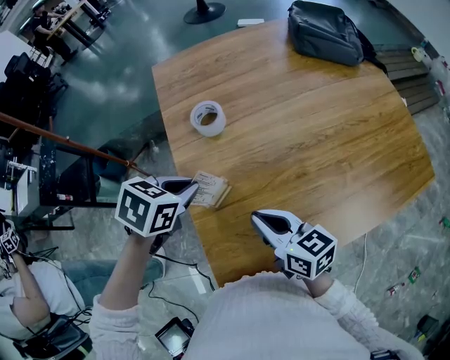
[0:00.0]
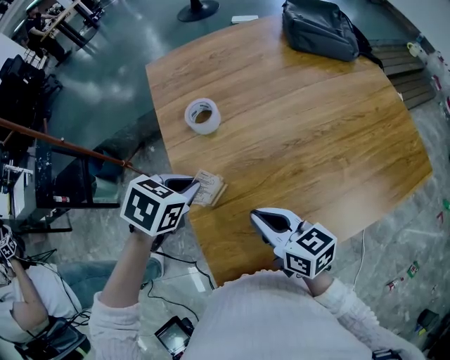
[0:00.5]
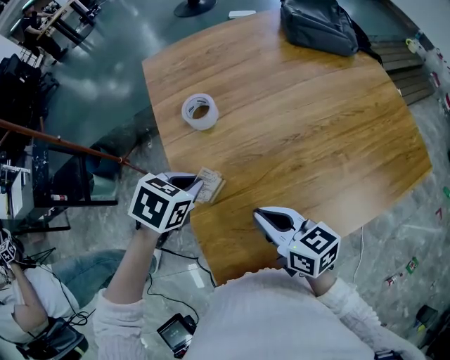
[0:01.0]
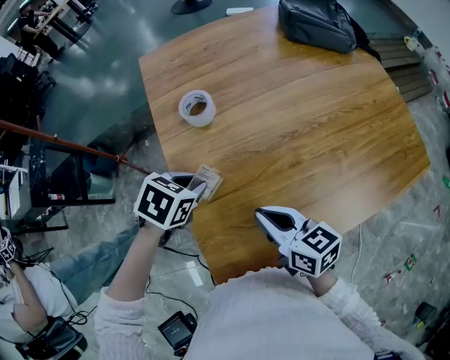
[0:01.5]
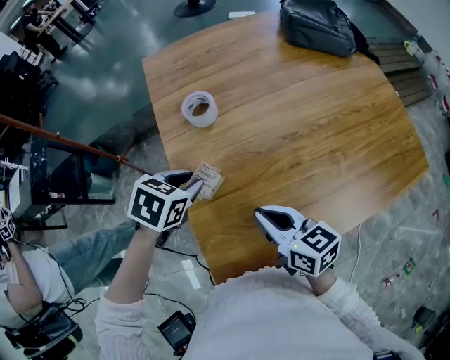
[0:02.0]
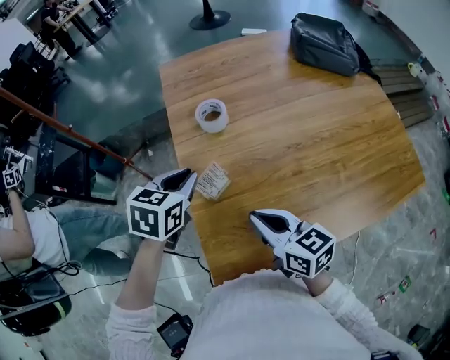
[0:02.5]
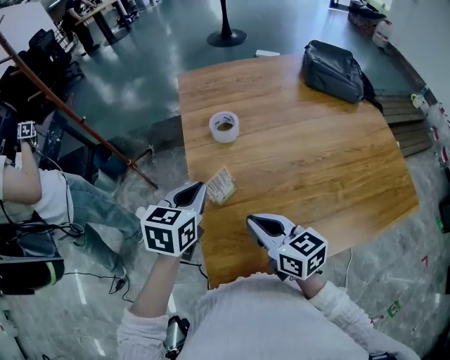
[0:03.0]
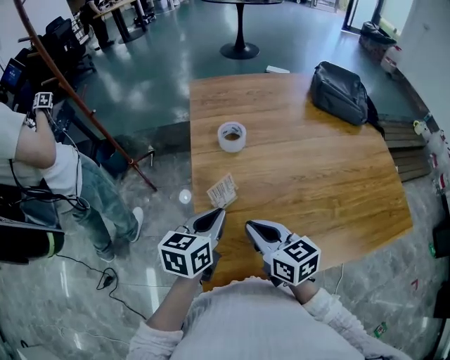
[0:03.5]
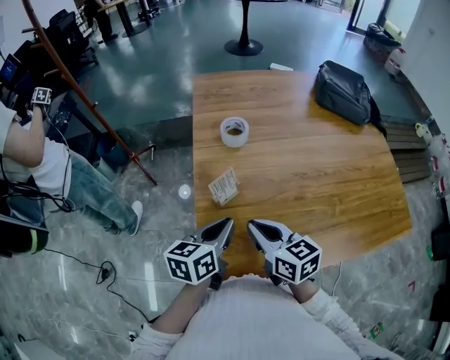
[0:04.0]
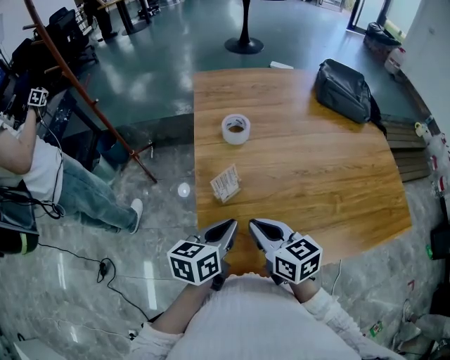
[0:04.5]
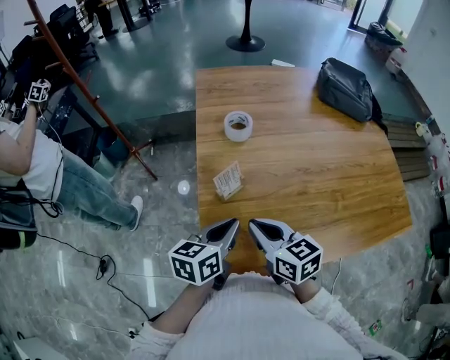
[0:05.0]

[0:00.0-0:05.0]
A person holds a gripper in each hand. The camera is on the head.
0:00.0 to 0:02.5: The left gripper swivels about 20 degrees.
0:02.5 to 0:05.0: The left gripper travels backward by some 15 cm, and swivels roughly 30 degrees.

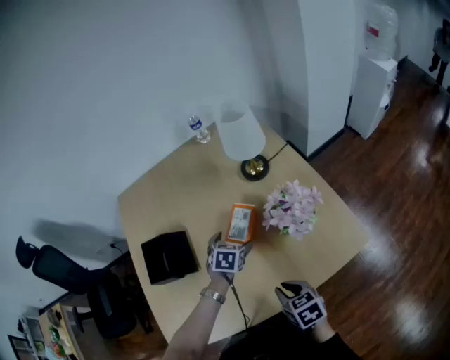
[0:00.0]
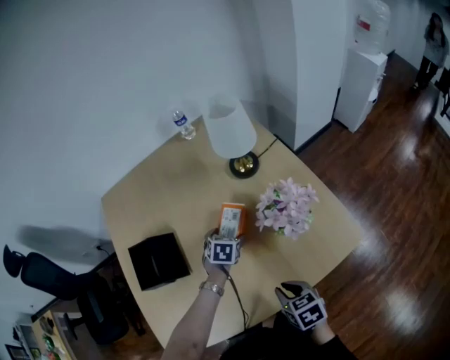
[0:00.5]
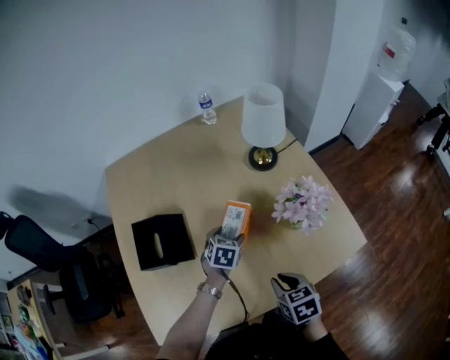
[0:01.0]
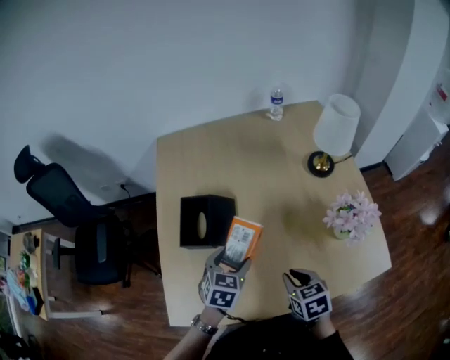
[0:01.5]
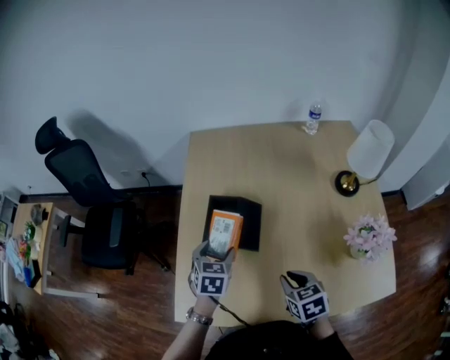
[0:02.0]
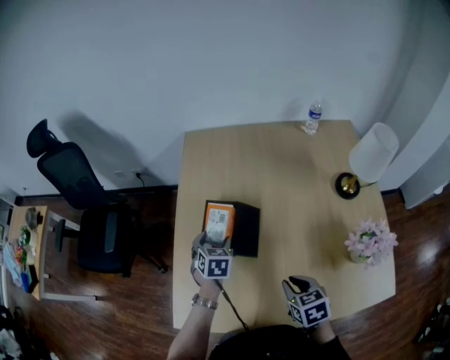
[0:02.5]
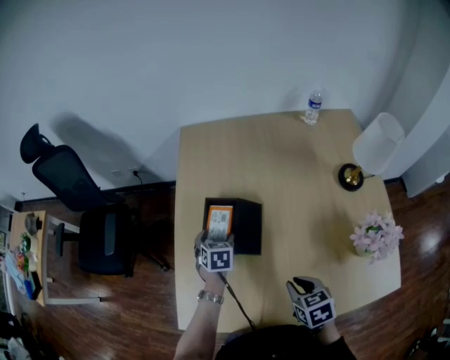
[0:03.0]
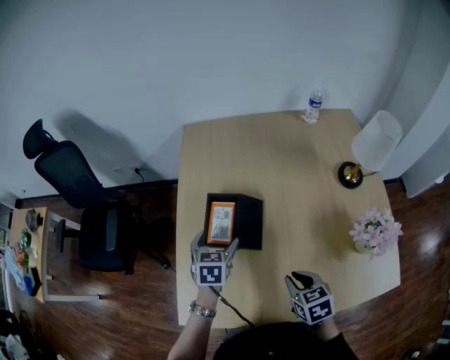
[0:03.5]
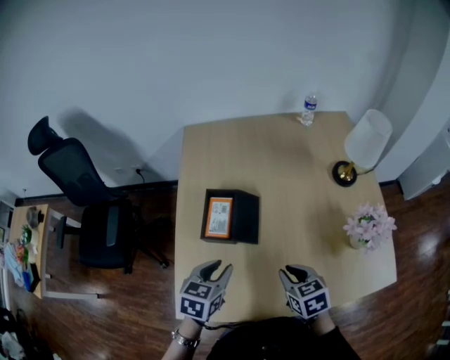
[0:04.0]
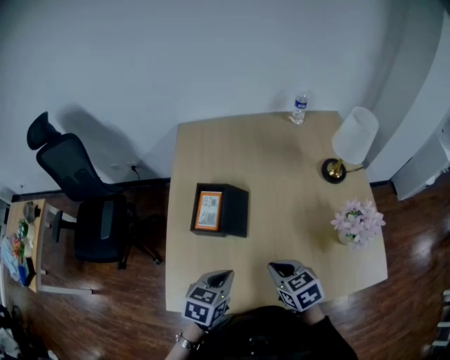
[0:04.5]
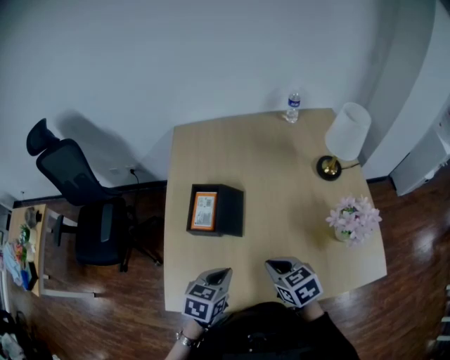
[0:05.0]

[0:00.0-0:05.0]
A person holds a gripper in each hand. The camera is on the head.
0:00.0 to 0:02.5: The right gripper shifts by about 20 cm, and rotates roughly 20 degrees. The left gripper moves up and down over approximately 10 cm, changing direction 2 times, and changes its angle by about 40 degrees.
0:02.5 to 0:05.0: The left gripper travels backward by approximately 20 cm, changes its angle by about 30 degrees, and closes its fingers.

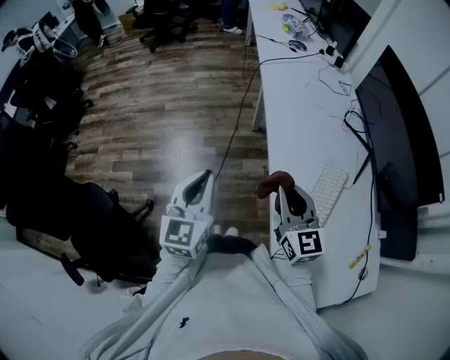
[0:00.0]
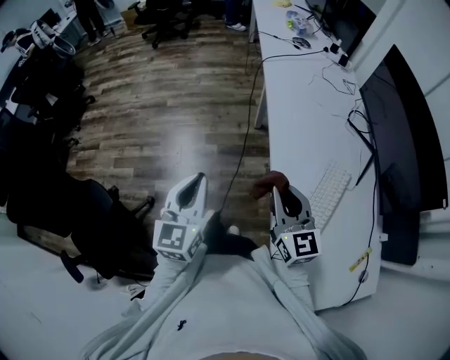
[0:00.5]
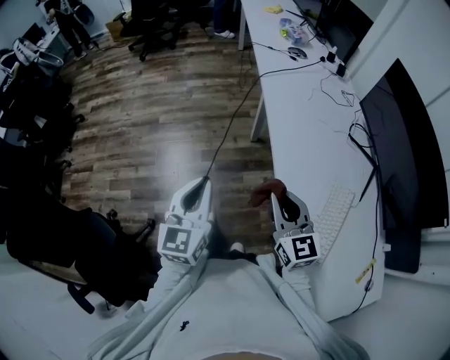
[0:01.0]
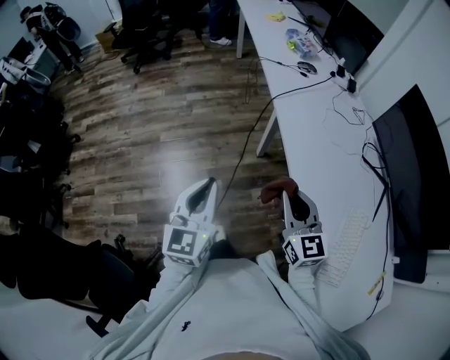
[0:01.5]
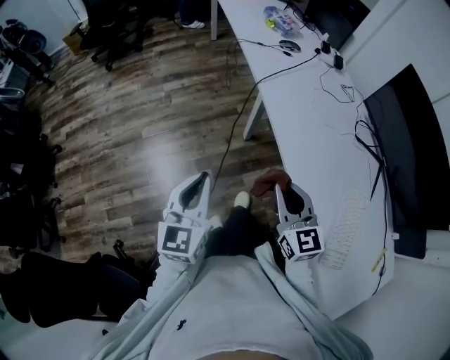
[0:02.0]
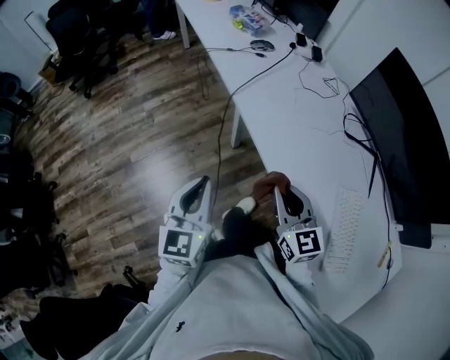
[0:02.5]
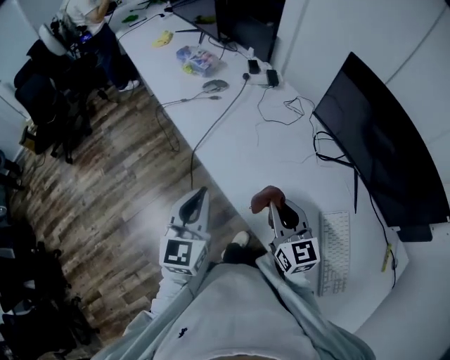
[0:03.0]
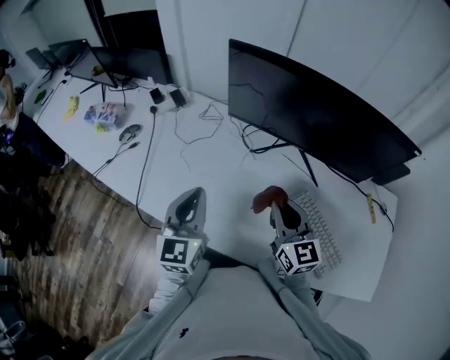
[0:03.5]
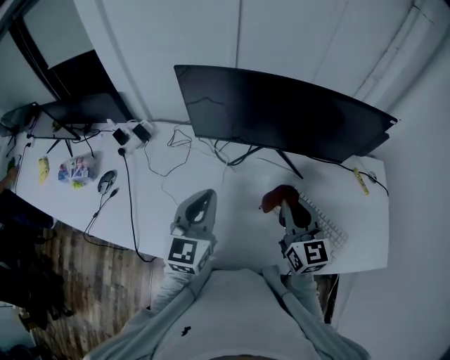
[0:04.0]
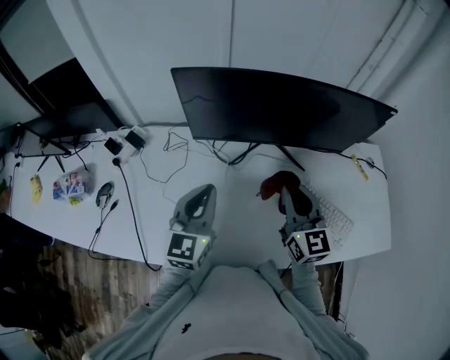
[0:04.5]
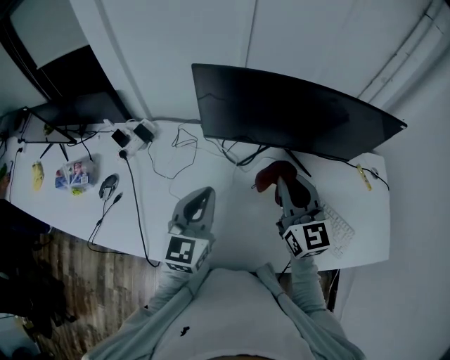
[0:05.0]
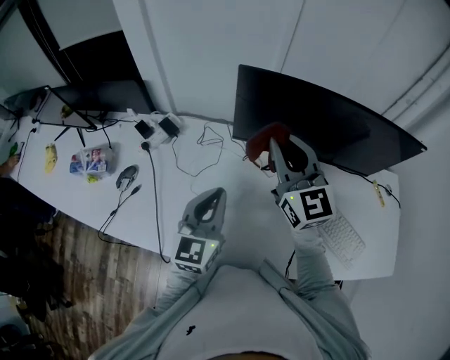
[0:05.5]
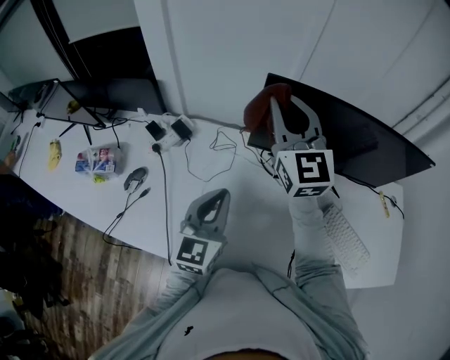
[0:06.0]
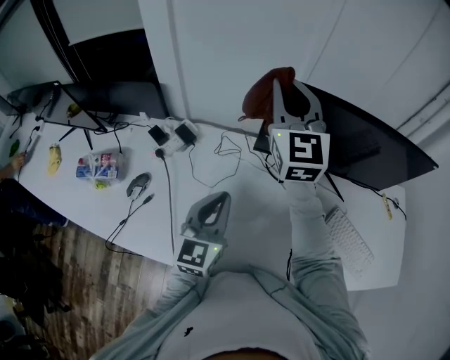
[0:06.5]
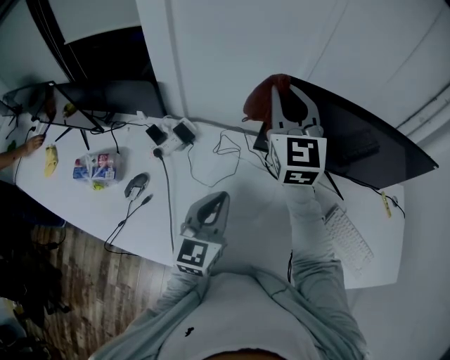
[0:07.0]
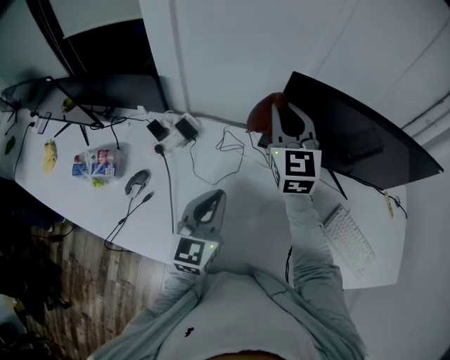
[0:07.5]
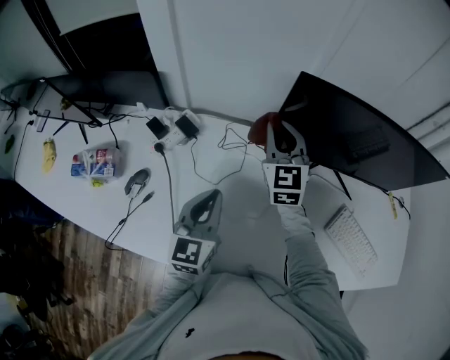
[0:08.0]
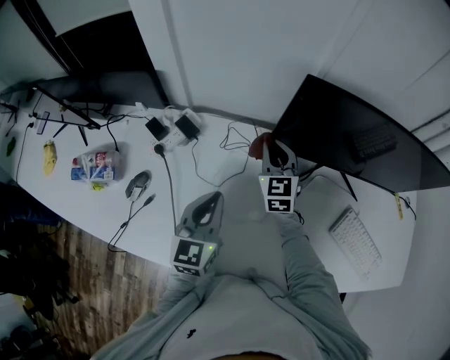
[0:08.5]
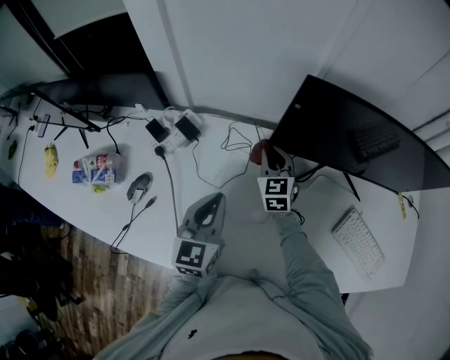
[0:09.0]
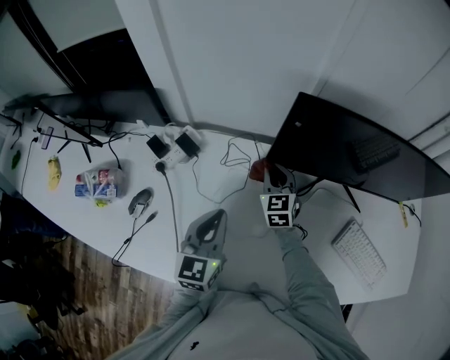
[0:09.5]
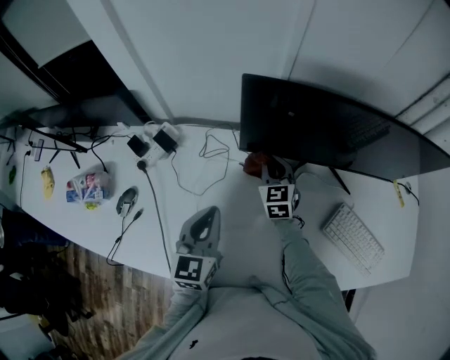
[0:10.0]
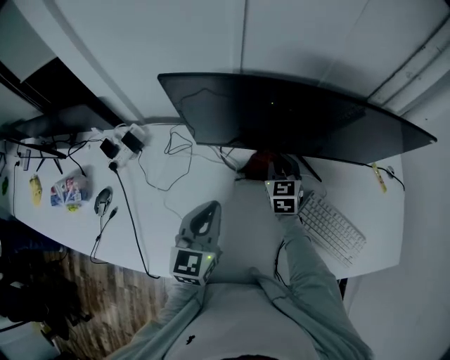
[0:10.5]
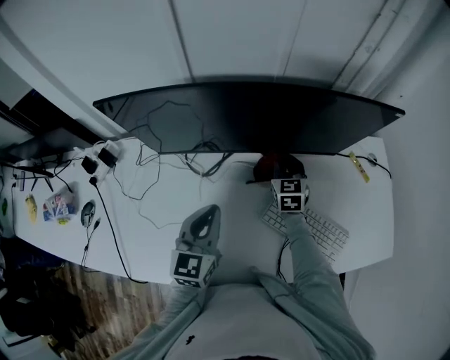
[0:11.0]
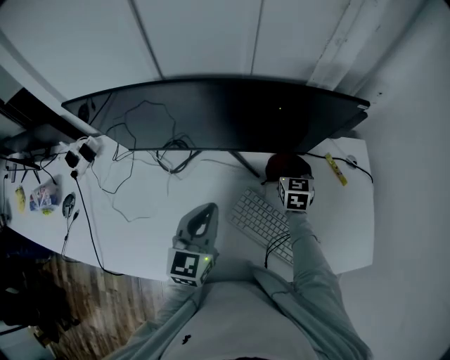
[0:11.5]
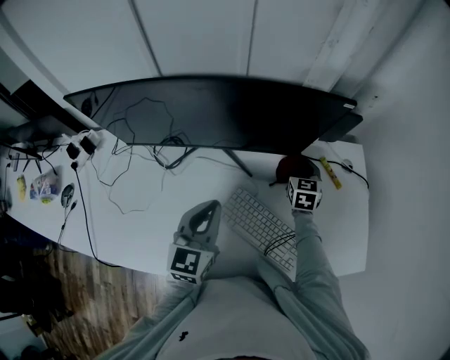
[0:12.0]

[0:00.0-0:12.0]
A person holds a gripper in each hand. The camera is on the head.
0:00.0 to 0:02.0: The two grippers go about 30 cm forward and to the left.
0:02.0 to 0:04.0: The right gripper shifts by about 35 cm, and rotates about 70 degrees. Meanwhile the left gripper changes place by roughly 50 cm, and swivels approximately 70 degrees.
0:04.0 to 0:06.0: The left gripper shifts some 15 cm to the left. Meanwhile the right gripper goes about 40 cm to the left, forward and upward, and turns by some 20 degrees.
0:06.0 to 0:08.0: The right gripper travels downward by about 15 cm. The left gripper is displaced to the left and downward by roughly 10 cm.
0:08.0 to 0:10.0: The right gripper is displaced downward and to the right by about 20 cm. The left gripper heads to the right, covering approximately 5 cm.
0:10.0 to 0:12.0: The two grippers go approximately 50 cm to the right. The right gripper swivels about 20 degrees.

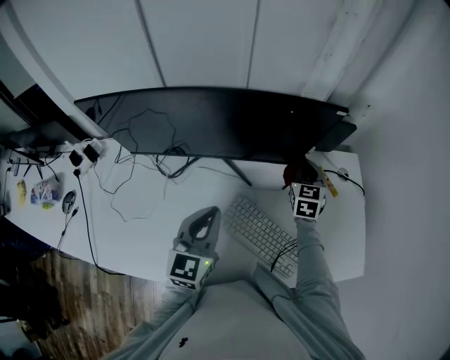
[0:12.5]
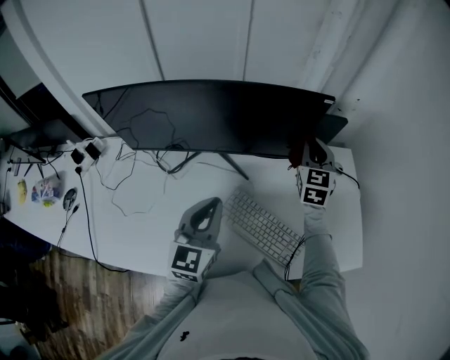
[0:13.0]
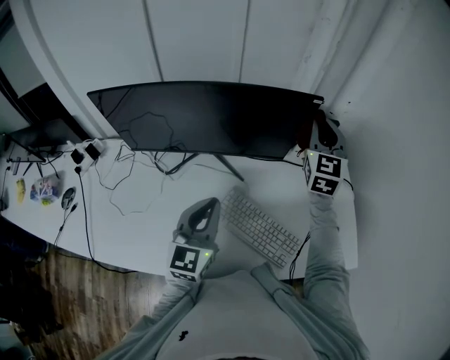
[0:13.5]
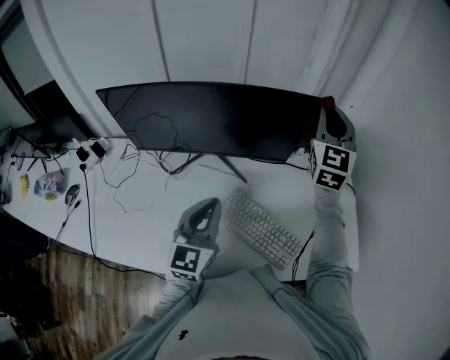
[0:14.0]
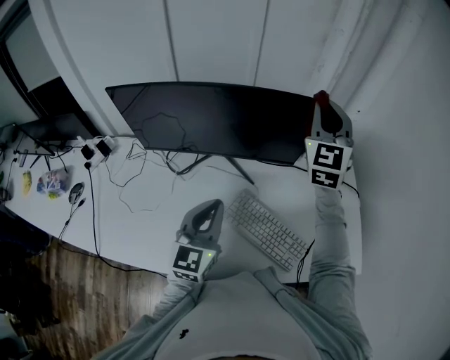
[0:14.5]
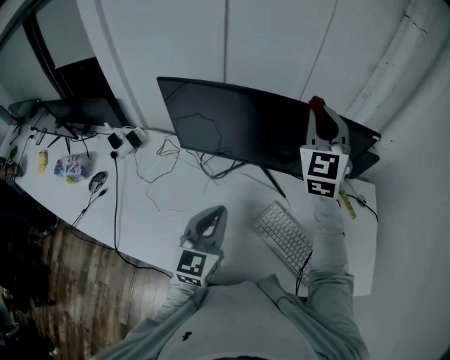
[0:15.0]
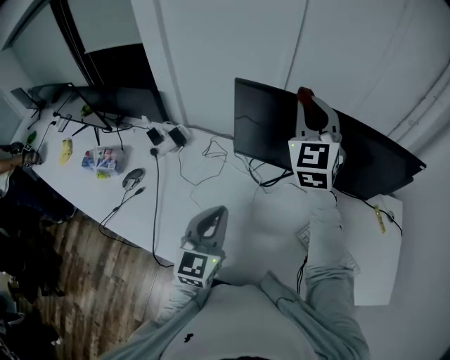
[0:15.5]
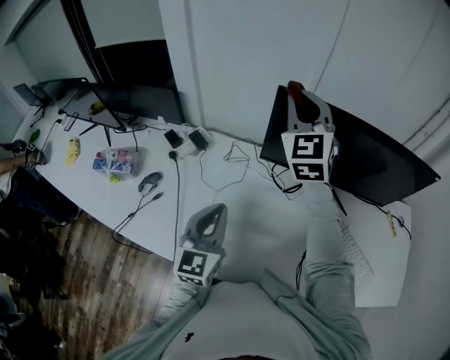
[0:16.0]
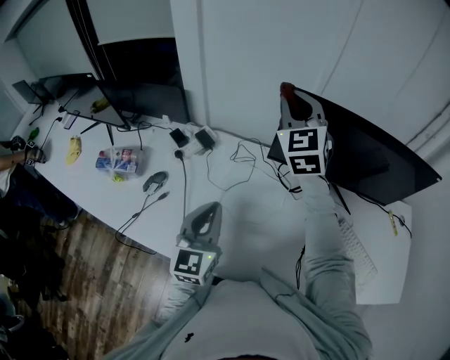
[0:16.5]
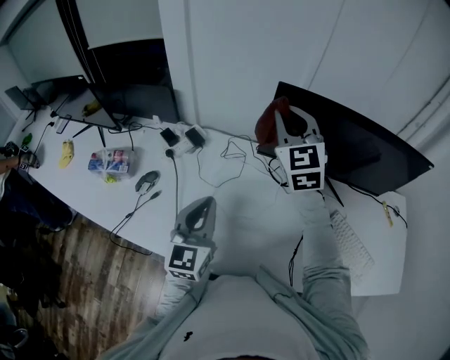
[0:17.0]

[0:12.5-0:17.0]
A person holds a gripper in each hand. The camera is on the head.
0:12.5 to 0:14.5: The left gripper shifts by about 5 cm. Meanwhile the right gripper goes approximately 30 cm upward, and rotates some 30 degrees.
0:14.5 to 0:17.0: Both grippers are carried to the left, some 50 cm. The right gripper turns by about 30 degrees.
